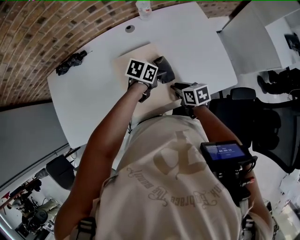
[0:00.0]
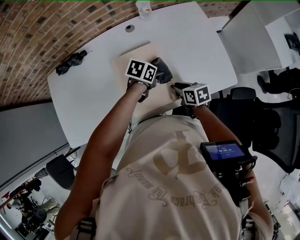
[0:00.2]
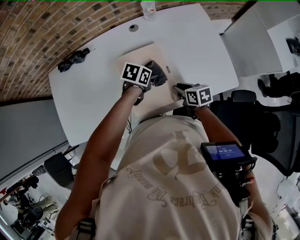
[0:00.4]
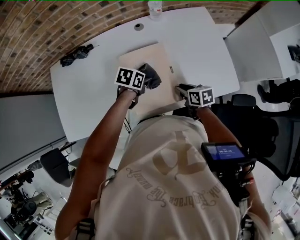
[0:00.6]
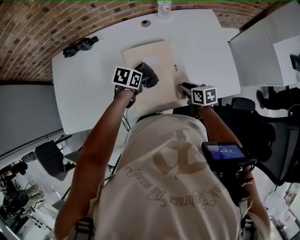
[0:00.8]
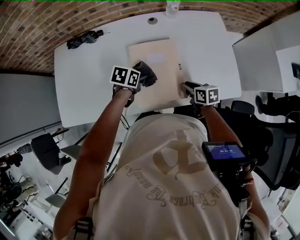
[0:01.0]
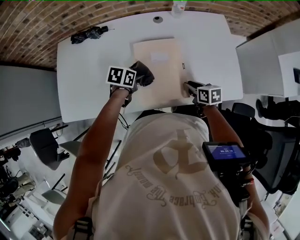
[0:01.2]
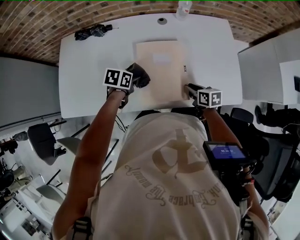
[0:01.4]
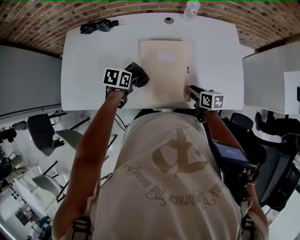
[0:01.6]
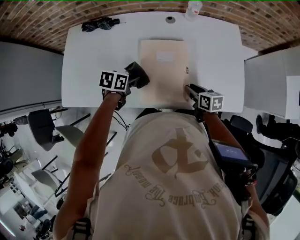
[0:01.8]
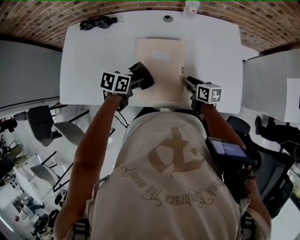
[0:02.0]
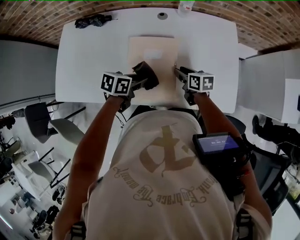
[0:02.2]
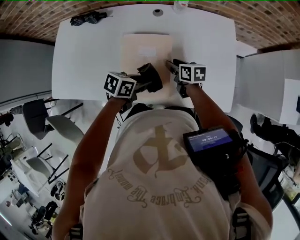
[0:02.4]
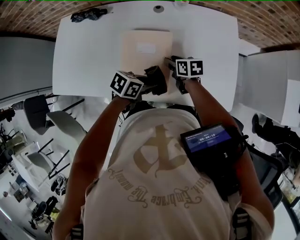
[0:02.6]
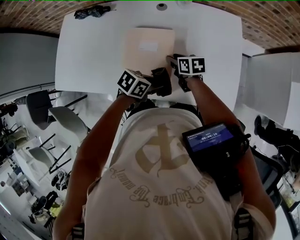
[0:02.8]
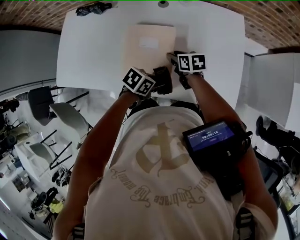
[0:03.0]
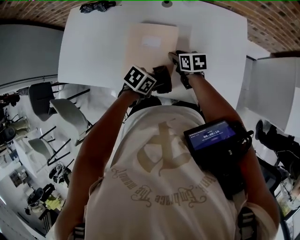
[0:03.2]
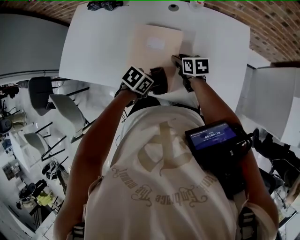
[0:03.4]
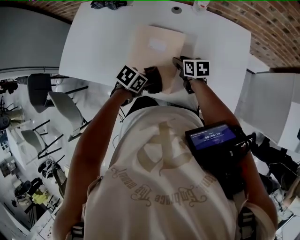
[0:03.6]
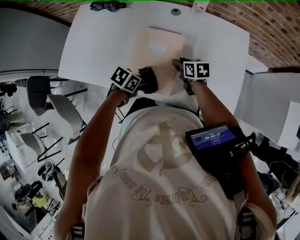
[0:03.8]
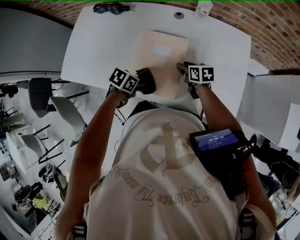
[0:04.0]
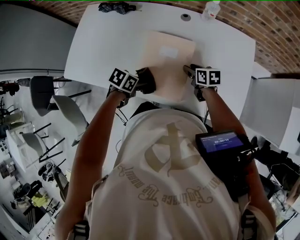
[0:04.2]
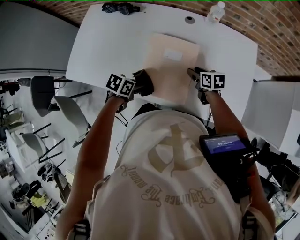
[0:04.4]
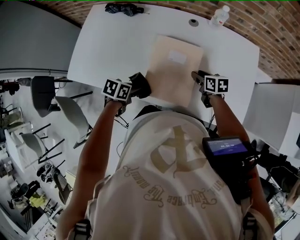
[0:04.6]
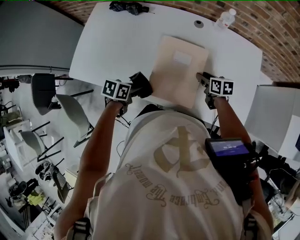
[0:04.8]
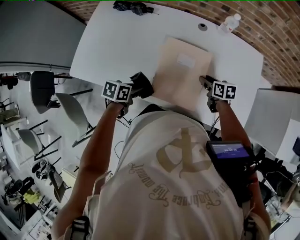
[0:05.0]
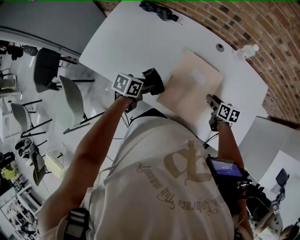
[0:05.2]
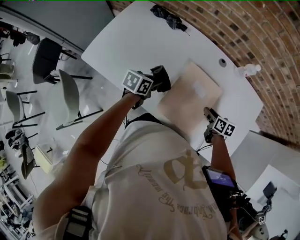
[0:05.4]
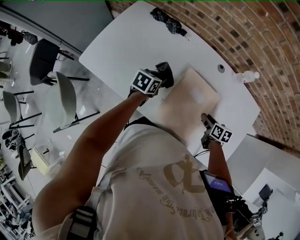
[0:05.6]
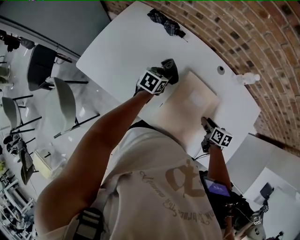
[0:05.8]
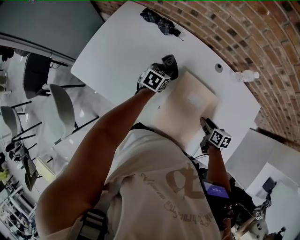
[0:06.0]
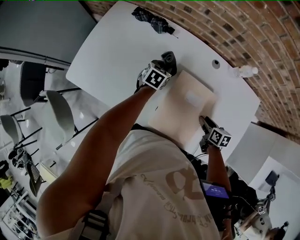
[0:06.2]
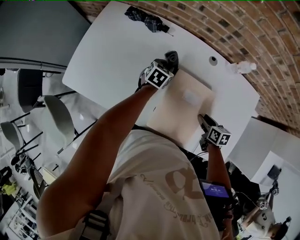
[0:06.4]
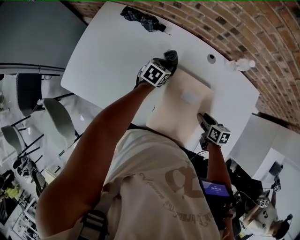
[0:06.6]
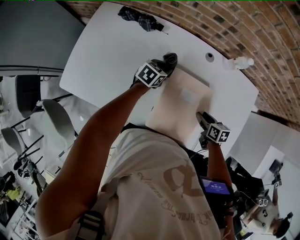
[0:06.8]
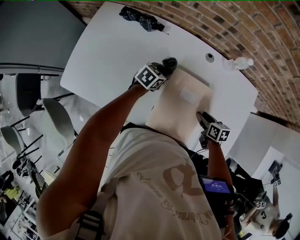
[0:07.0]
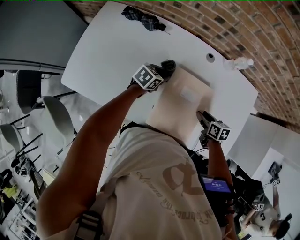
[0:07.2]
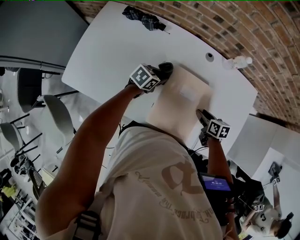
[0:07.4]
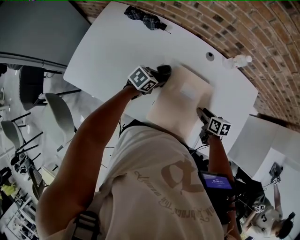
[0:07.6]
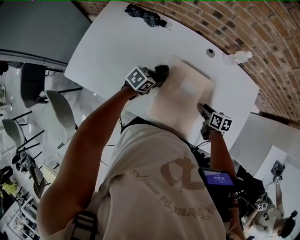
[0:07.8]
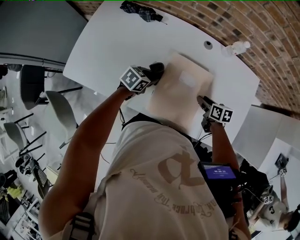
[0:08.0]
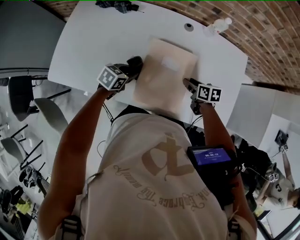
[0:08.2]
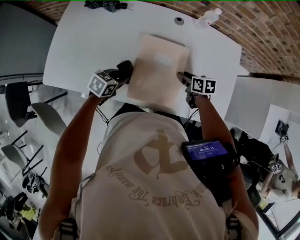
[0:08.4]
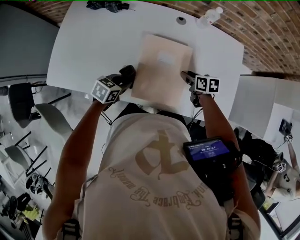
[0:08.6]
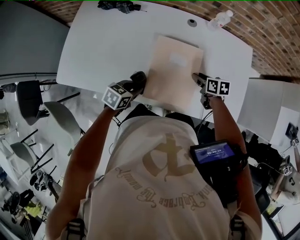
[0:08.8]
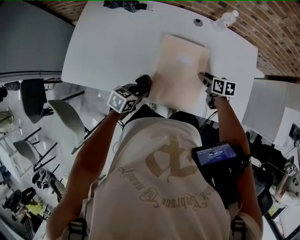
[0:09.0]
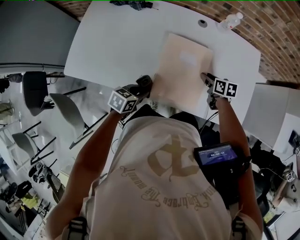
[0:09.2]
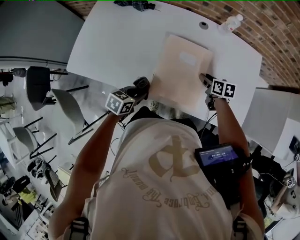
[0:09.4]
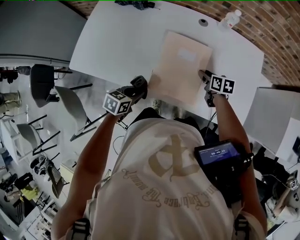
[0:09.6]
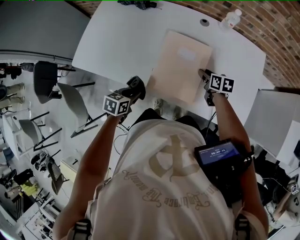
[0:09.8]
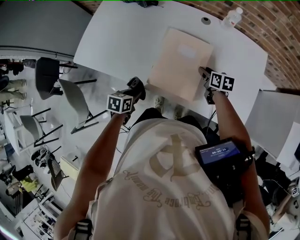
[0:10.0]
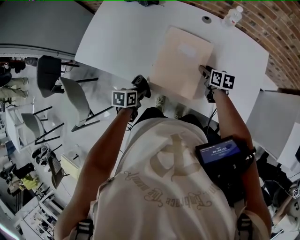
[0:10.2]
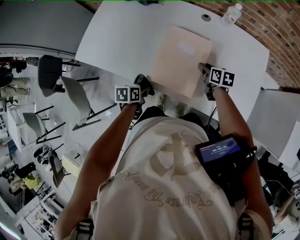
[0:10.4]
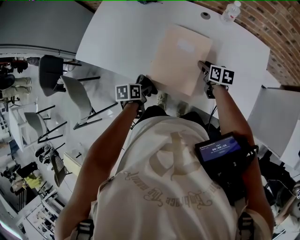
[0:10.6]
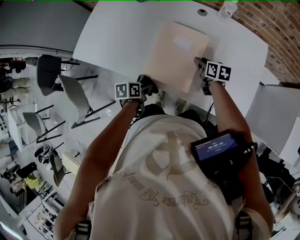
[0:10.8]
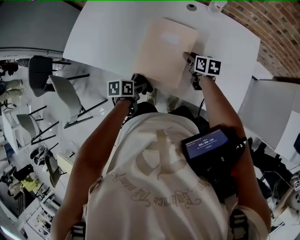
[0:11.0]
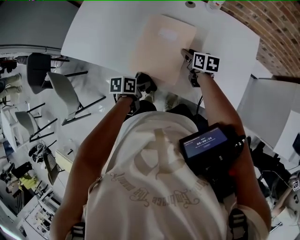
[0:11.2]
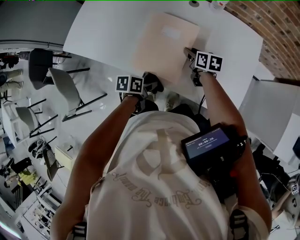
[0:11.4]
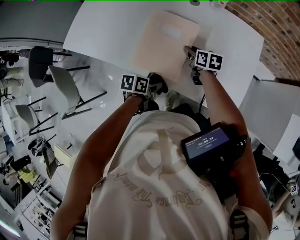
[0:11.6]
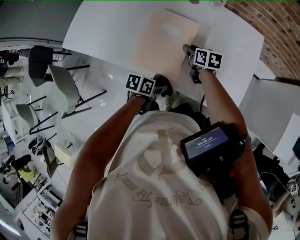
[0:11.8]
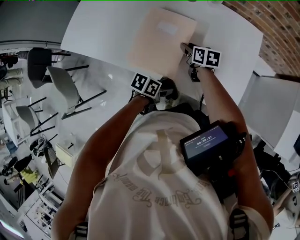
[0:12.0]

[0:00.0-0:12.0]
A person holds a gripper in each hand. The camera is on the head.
0:00.0 to 0:01.6: The left gripper ends up roughly 25 cm from where it was, and turns by roughly 30 degrees.
0:01.6 to 0:03.0: The right gripper changes place by roughly 10 cm. The left gripper ends up about 25 cm from where it was.
0:03.0 to 0:04.4: The left gripper moves about 20 cm.
0:04.4 to 0:06.0: The left gripper moves forward, some 25 cm, and turns by roughly 30 degrees.
0:06.0 to 0:07.6: The left gripper is displaced backward and to the right by about 10 cm, and rotates about 30 degrees.
0:07.6 to 0:09.0: The left gripper travels backward by about 20 cm.
0:09.0 to 0:10.4: The left gripper goes approximately 5 cm backward, and changes its angle by about 40 degrees.
0:10.4 to 0:12.0: The left gripper is displaced to the right by about 25 cm, and rotates approximately 30 degrees.

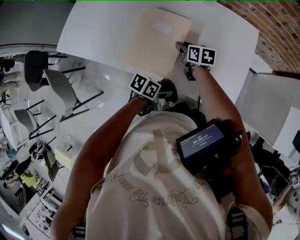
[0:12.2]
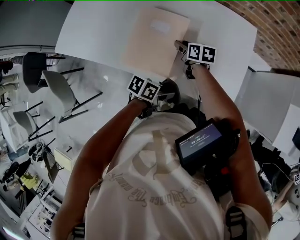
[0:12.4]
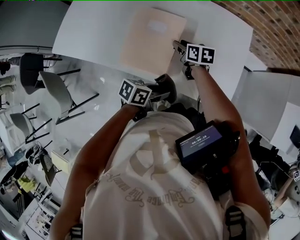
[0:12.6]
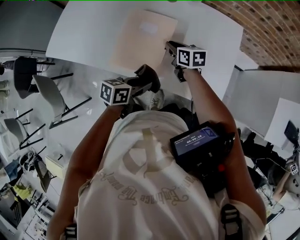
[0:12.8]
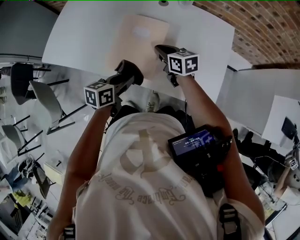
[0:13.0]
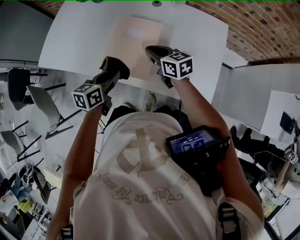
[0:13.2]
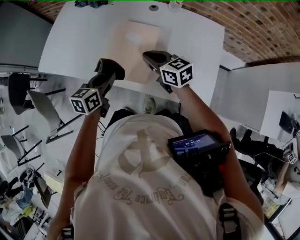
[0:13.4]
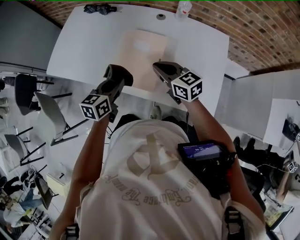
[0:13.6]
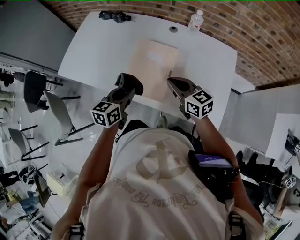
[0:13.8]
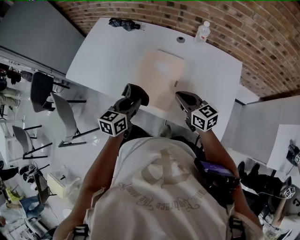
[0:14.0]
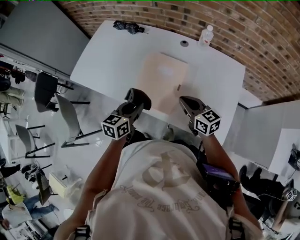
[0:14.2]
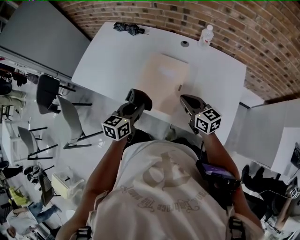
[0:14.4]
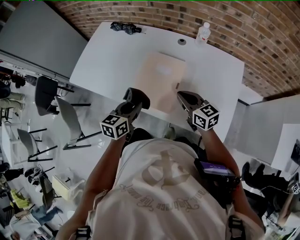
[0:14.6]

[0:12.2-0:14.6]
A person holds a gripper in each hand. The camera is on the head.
0:12.2 to 0:13.4: The right gripper travels upward by some 15 cm, rotates about 30 degrees, and closes, while the left gripper shifts by roughly 20 cm, and turns by about 50 degrees.
0:13.4 to 0:14.6: The grippers stay close to where they were, moving slightly.

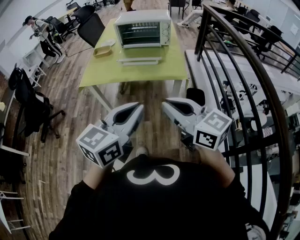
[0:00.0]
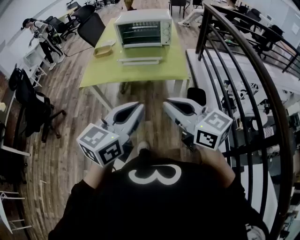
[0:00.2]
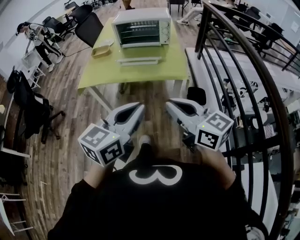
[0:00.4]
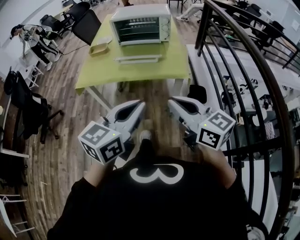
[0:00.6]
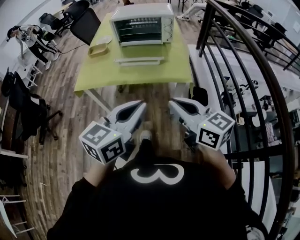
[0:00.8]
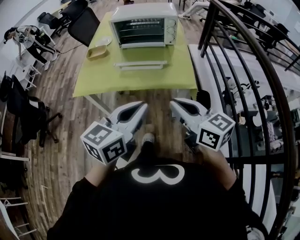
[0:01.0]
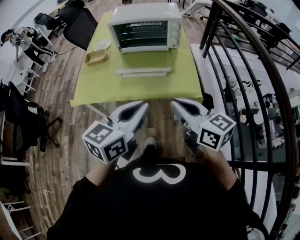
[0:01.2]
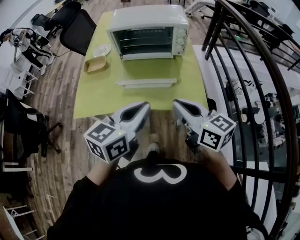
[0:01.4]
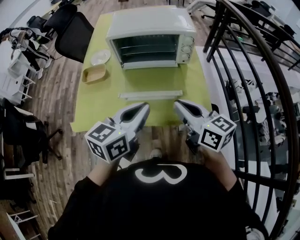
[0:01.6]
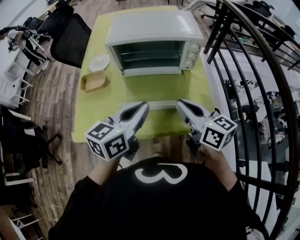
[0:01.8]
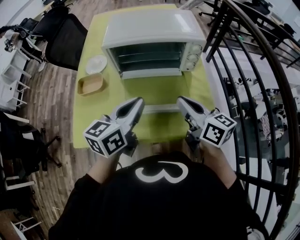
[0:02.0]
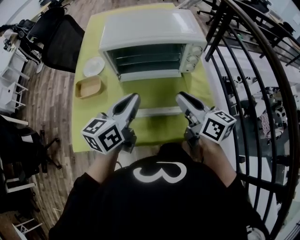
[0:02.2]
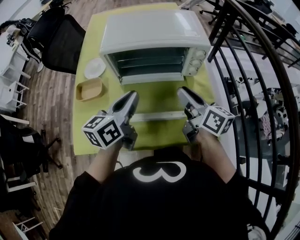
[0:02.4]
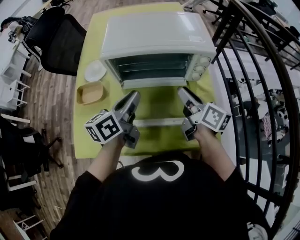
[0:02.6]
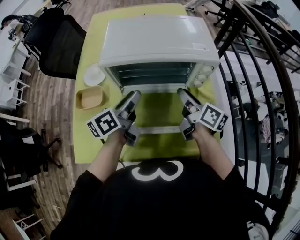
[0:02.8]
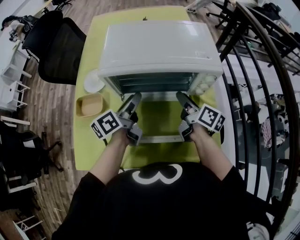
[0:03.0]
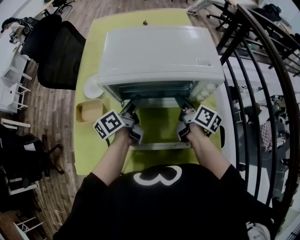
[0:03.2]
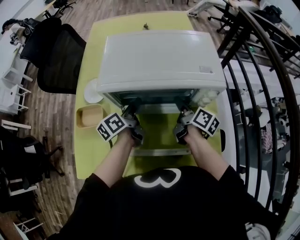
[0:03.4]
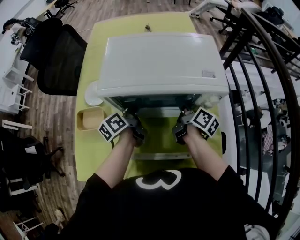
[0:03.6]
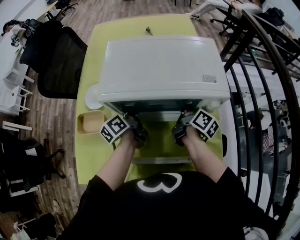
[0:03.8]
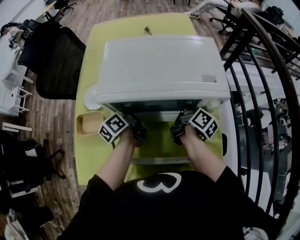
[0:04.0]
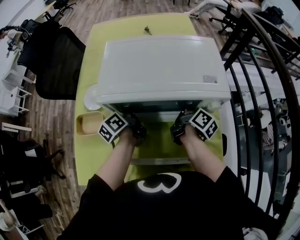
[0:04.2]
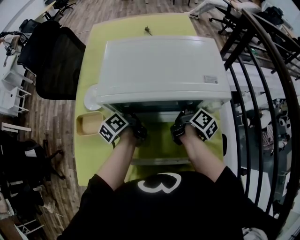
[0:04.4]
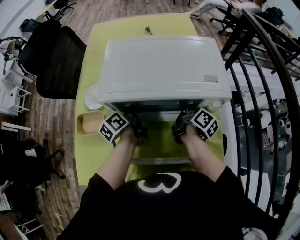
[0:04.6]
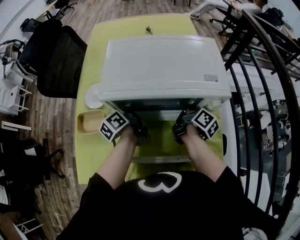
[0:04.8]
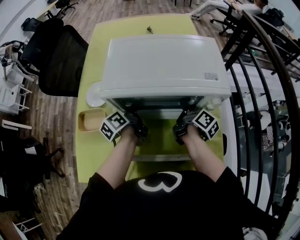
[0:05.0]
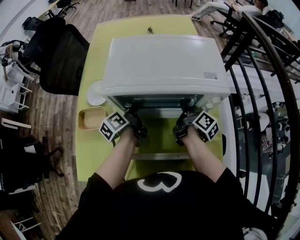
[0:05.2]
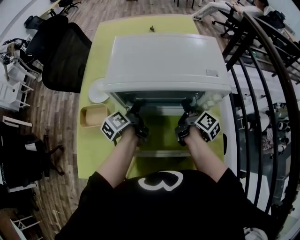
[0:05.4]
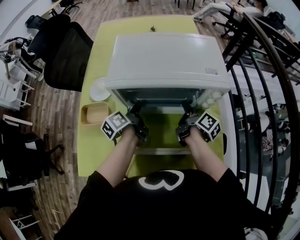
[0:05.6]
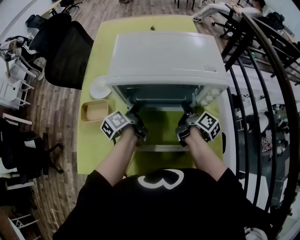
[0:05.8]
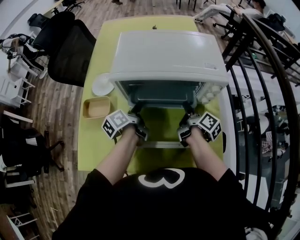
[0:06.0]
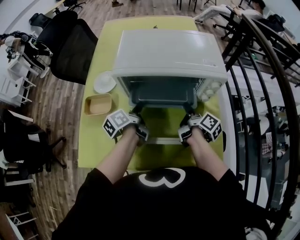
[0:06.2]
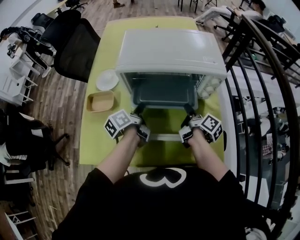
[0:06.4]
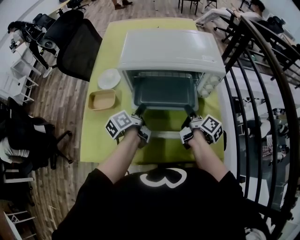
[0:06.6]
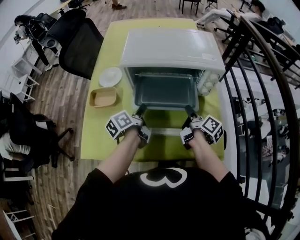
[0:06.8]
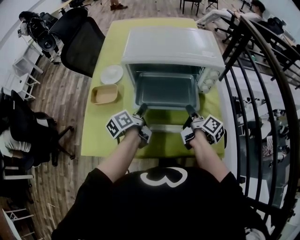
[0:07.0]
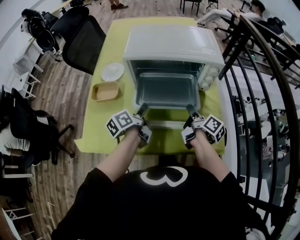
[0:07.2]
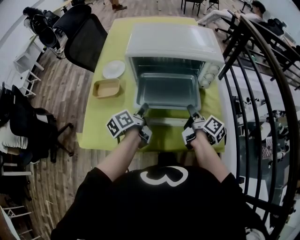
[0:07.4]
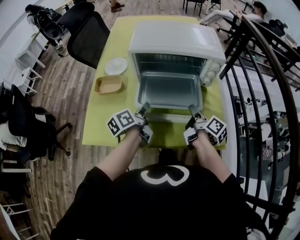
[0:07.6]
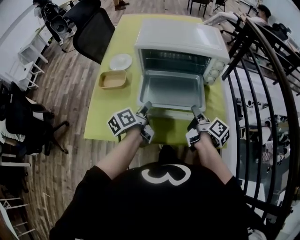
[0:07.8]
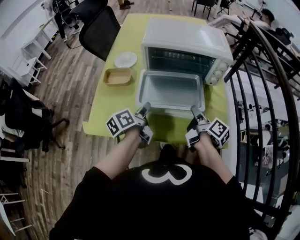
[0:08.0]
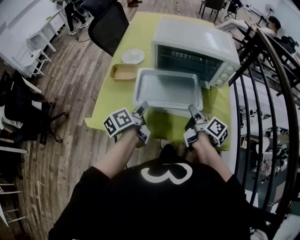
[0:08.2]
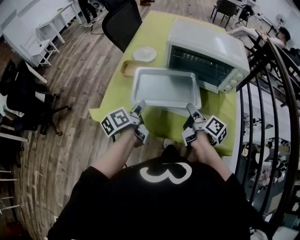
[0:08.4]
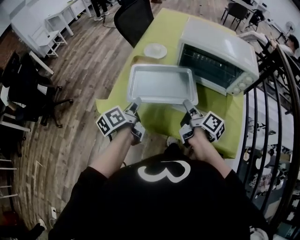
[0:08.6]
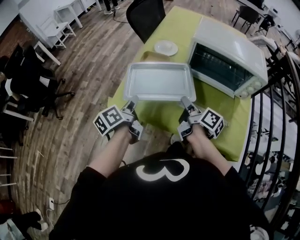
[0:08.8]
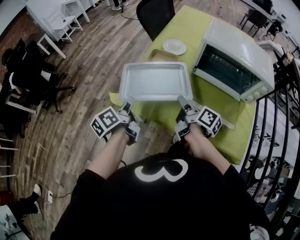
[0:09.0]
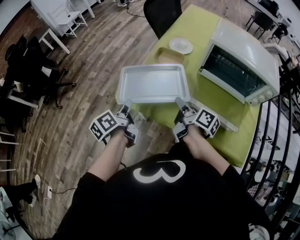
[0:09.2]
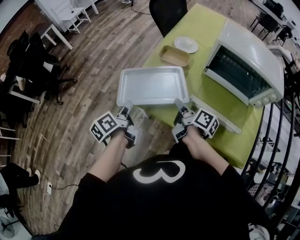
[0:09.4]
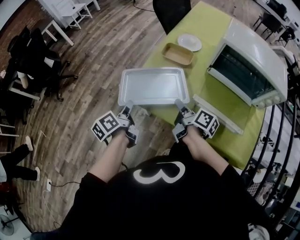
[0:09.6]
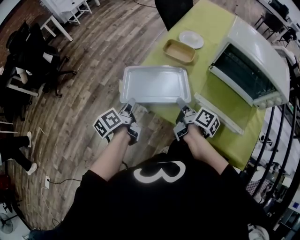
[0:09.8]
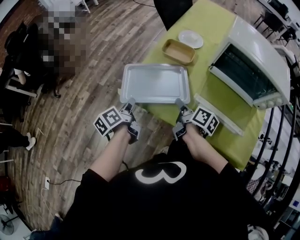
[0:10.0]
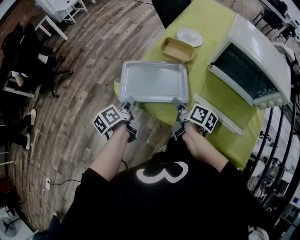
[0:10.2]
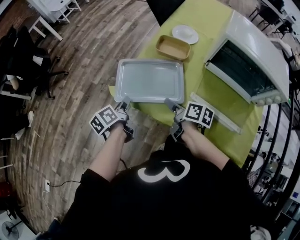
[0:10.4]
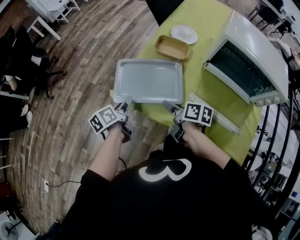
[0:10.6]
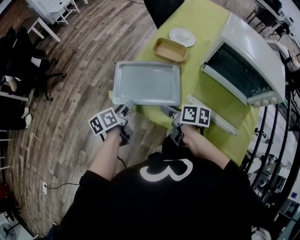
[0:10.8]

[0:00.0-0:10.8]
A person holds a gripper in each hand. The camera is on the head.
0:00.0 to 0:01.6: Both grippers are carried forward, roughly 40 cm. The right gripper swivels roughly 20 degrees.
0:01.6 to 0:03.0: The left gripper goes roughly 30 cm forward, rotates around the line of its fingers by roughly 40 degrees, counterclockwise from behind, and opens, while the right gripper goes some 35 cm forward and downward, rotates approximately 40 degrees, and opens its fingers.
0:03.0 to 0:04.6: The right gripper goes approximately 10 cm forward. The left gripper goes some 10 cm forward and downward, and closes its fingers.
0:04.6 to 0:06.2: Both grippers move backward, roughly 10 cm.
0:06.2 to 0:07.8: The grippers both shift backward by roughly 15 cm.
0:07.8 to 0:09.2: The left gripper ends up approximately 35 cm from where it was, and turns by approximately 30 degrees; the right gripper shifts by roughly 30 cm, and changes its angle by roughly 40 degrees.
0:09.2 to 0:10.8: Both grippers move downward, about 10 cm. The right gripper swivels roughly 30 degrees, and opens up, while the left gripper opens.
